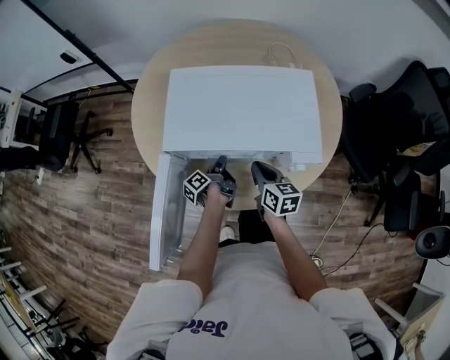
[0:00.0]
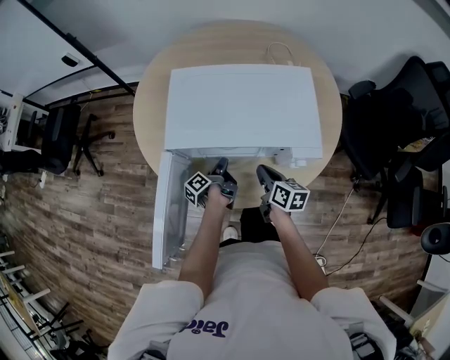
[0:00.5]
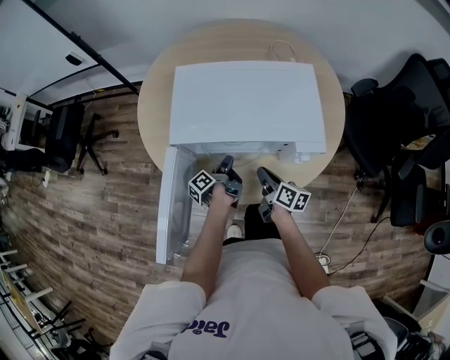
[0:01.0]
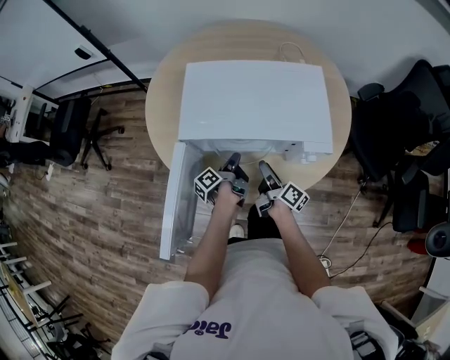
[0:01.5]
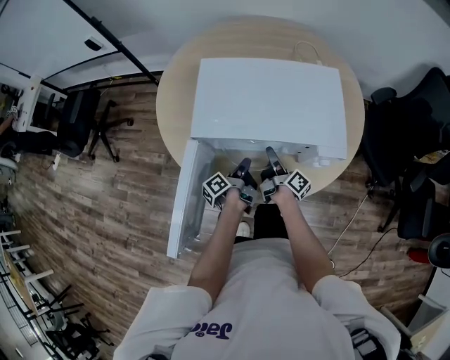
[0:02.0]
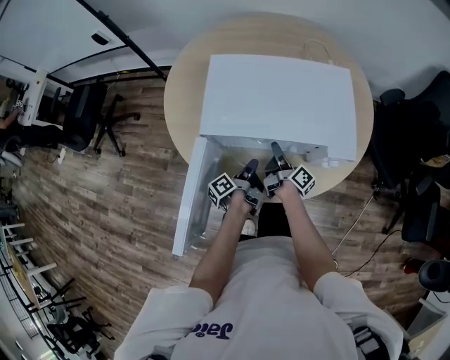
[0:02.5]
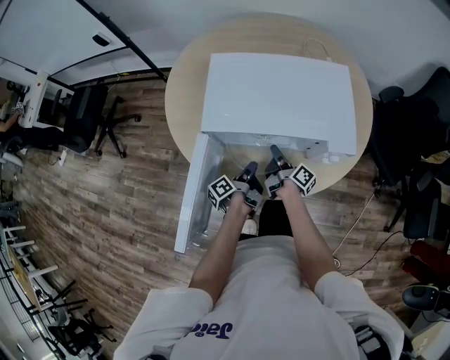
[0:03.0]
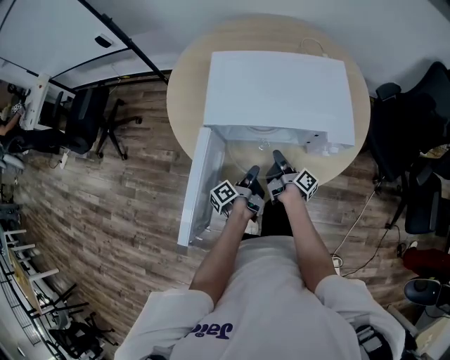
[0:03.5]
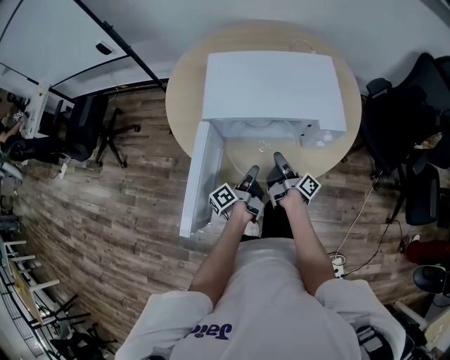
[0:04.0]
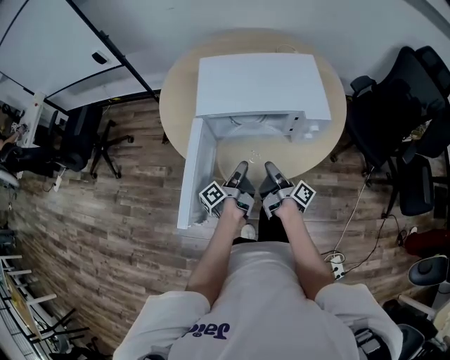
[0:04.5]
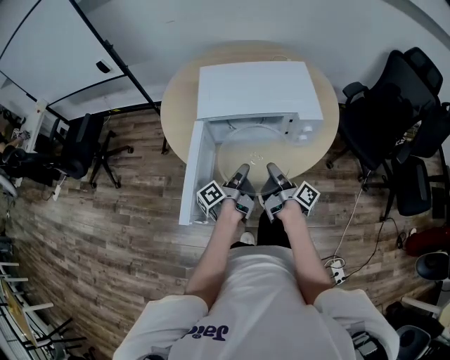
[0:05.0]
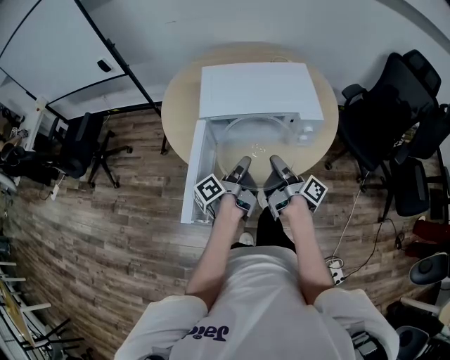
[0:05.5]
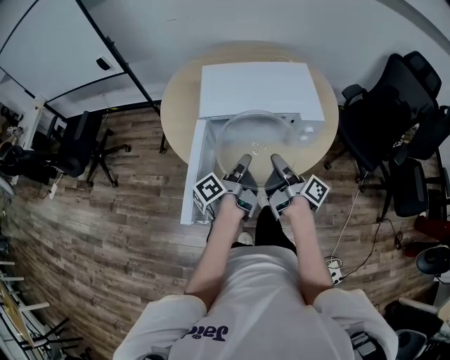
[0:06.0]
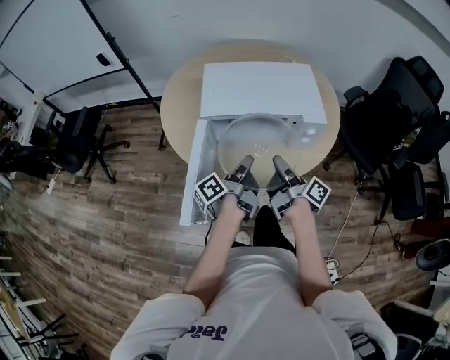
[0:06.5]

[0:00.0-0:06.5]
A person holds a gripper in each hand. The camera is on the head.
0:00.0 to 0:02.0: The right gripper heads downward, covering approximately 5 cm, rolls clockwise, seen from behind, by some 50 degrees, and opens up.
0:02.0 to 0:04.5: The right gripper ends up some 15 cm from where it was, and closes.
0:04.5 to 0:06.5: The right gripper is displaced upward by roughly 10 cm.

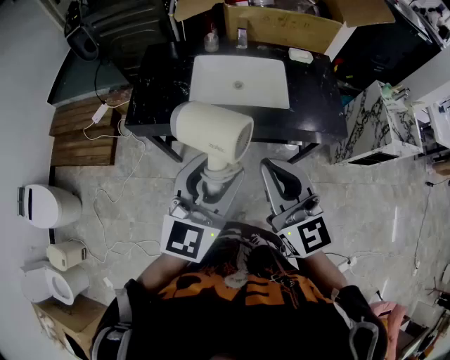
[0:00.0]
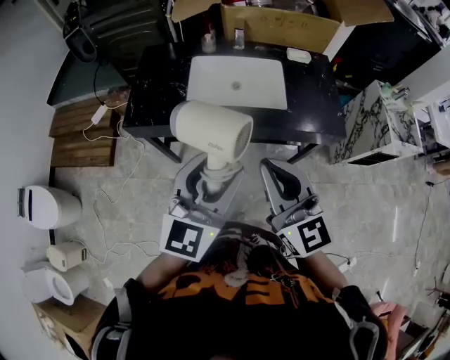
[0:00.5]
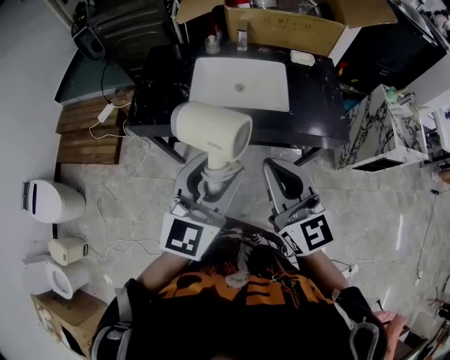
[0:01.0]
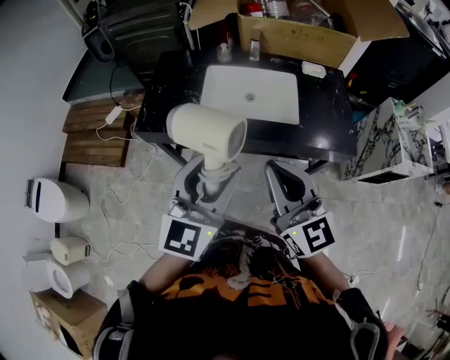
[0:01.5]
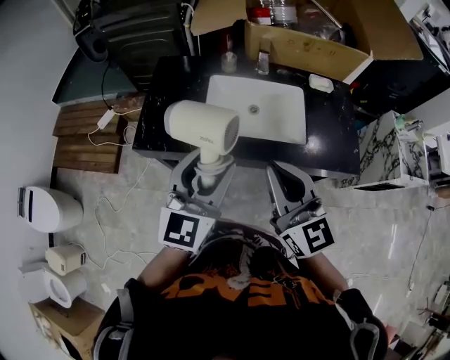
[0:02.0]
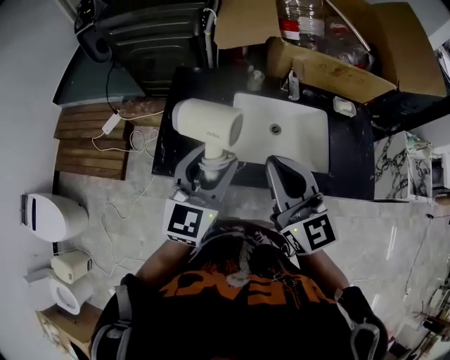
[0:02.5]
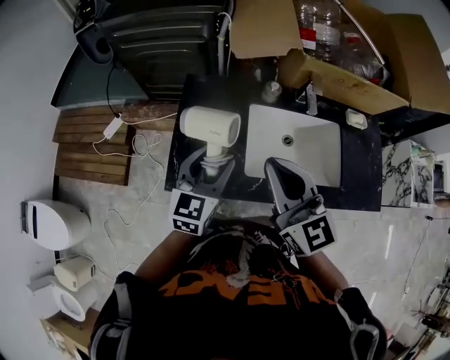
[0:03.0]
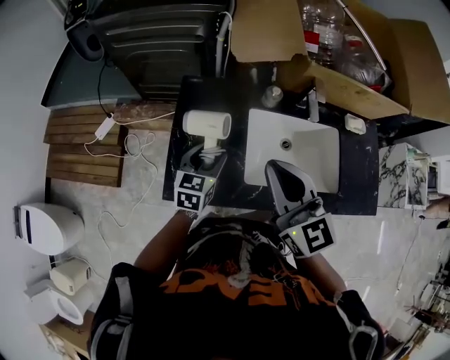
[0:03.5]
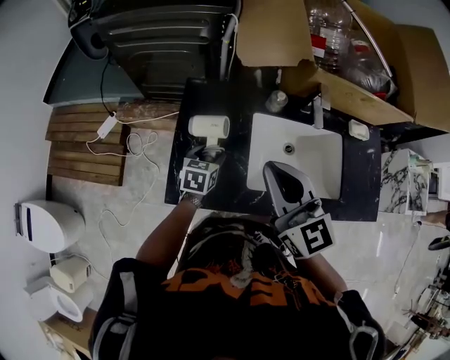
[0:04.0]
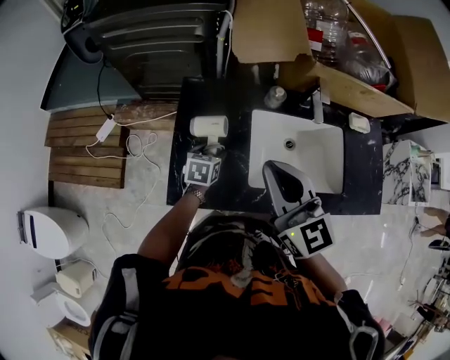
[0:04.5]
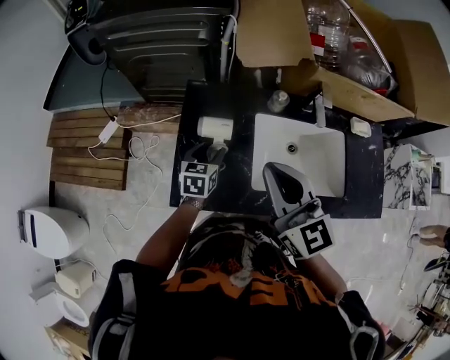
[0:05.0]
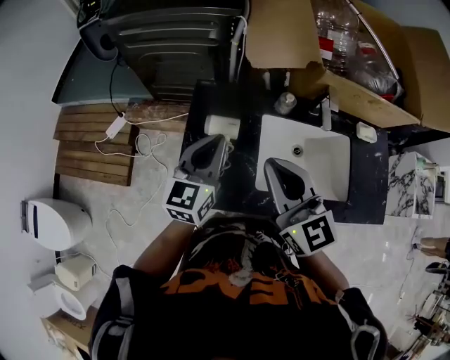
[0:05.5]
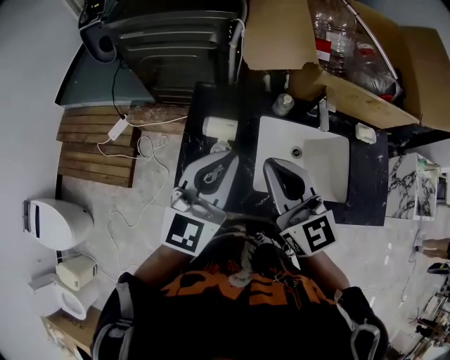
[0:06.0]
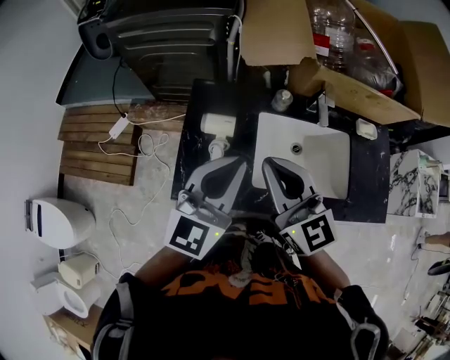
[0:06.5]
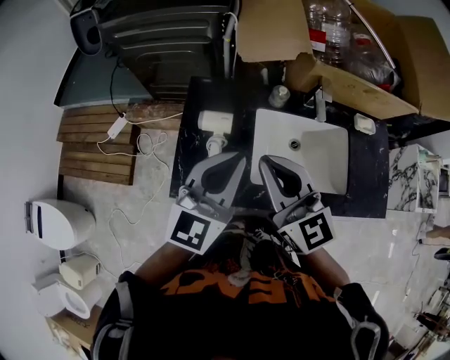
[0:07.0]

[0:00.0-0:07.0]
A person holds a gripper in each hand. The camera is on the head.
0:00.0 to 0:02.0: Both grippers move forward, some 15 cm.
0:02.0 to 0:03.5: The right gripper moves forward and to the left, about 30 cm; the left gripper shifts about 40 cm forward, downward and to the left, and changes its angle by about 30 degrees.
0:03.5 to 0:05.0: The left gripper is displaced downward by about 5 cm.
0:05.0 to 0:07.0: The left gripper shifts some 25 cm upward, points its fingers roughly 40 degrees further upward, and closes up.

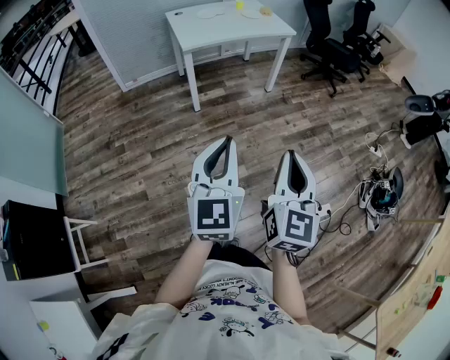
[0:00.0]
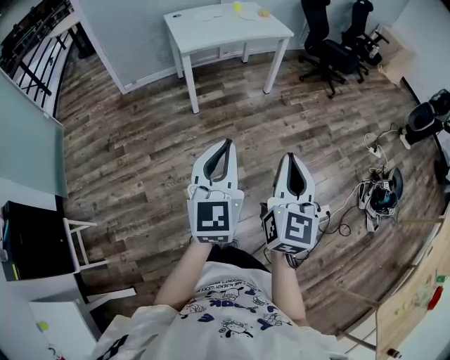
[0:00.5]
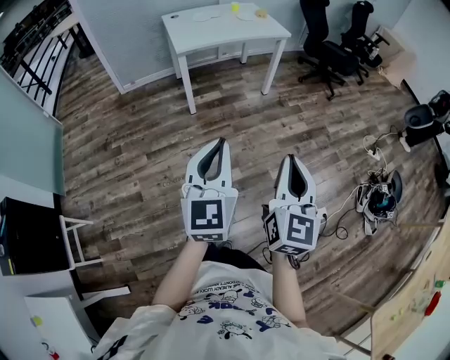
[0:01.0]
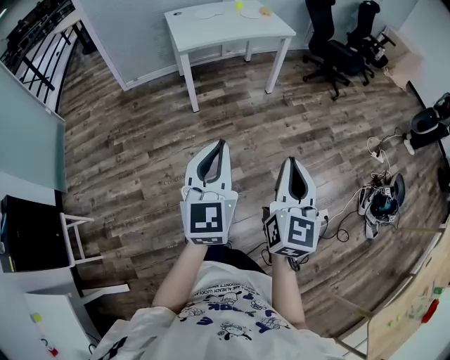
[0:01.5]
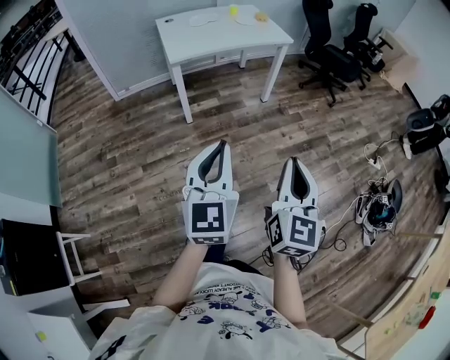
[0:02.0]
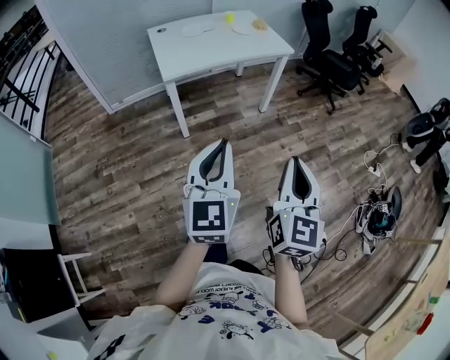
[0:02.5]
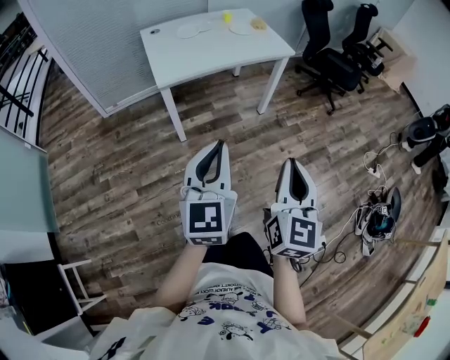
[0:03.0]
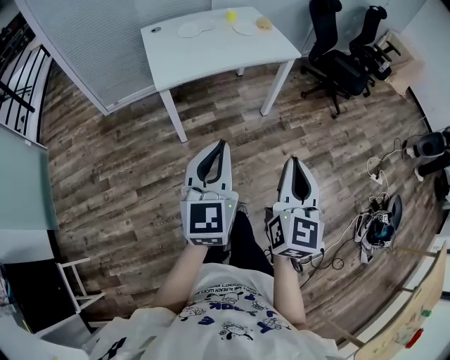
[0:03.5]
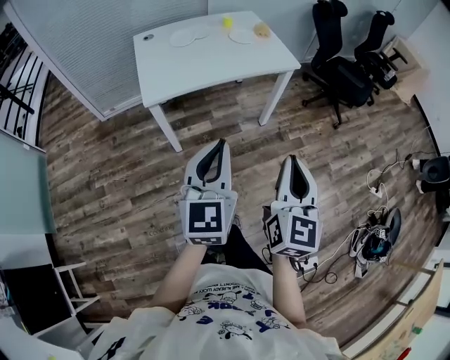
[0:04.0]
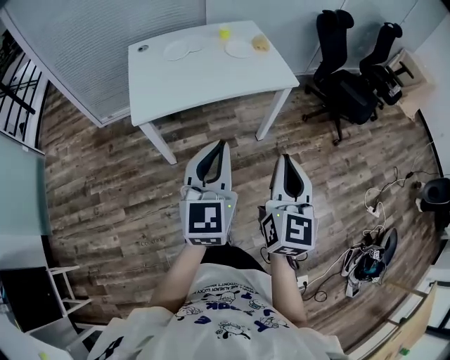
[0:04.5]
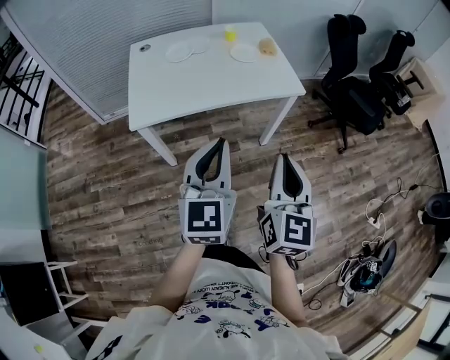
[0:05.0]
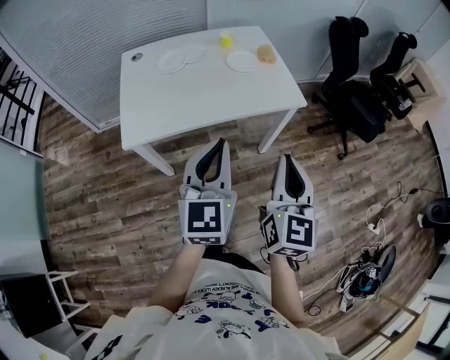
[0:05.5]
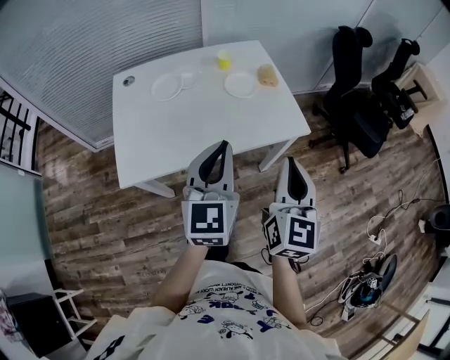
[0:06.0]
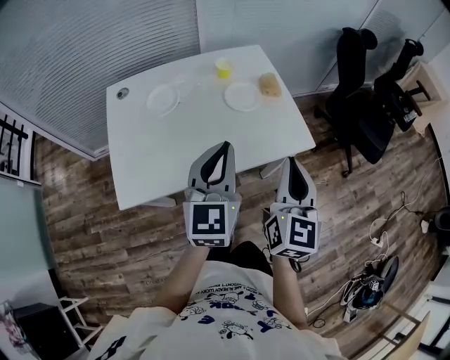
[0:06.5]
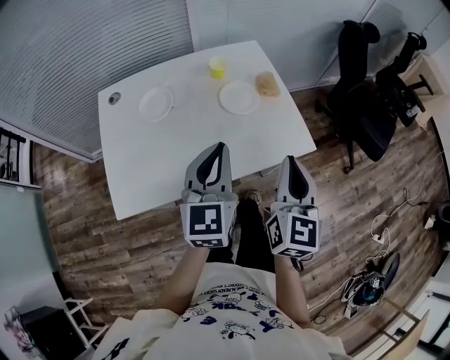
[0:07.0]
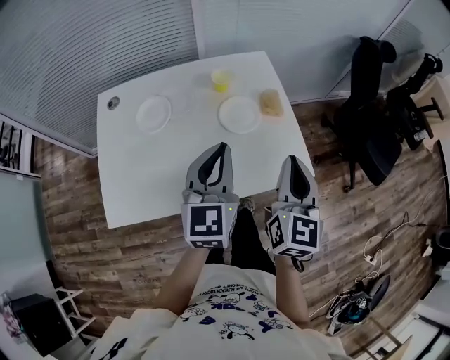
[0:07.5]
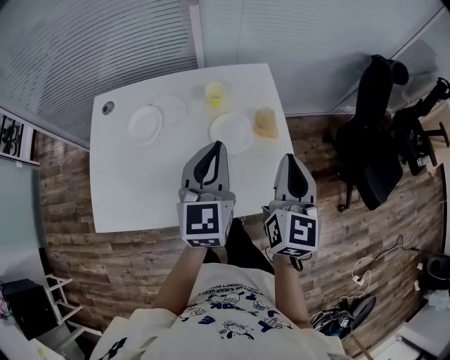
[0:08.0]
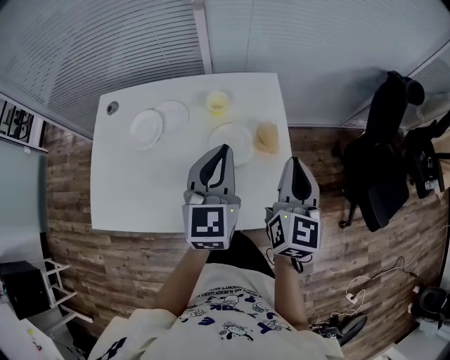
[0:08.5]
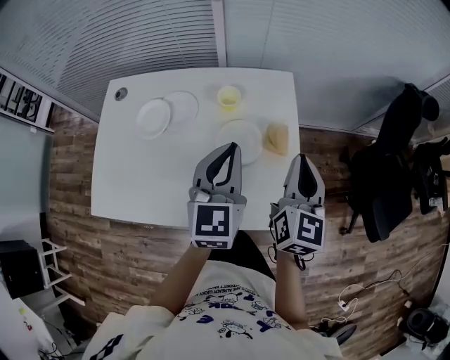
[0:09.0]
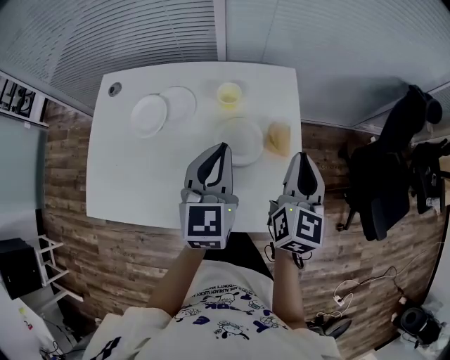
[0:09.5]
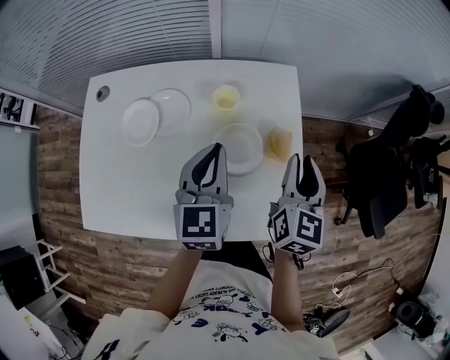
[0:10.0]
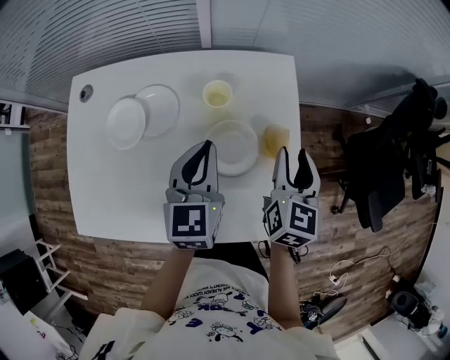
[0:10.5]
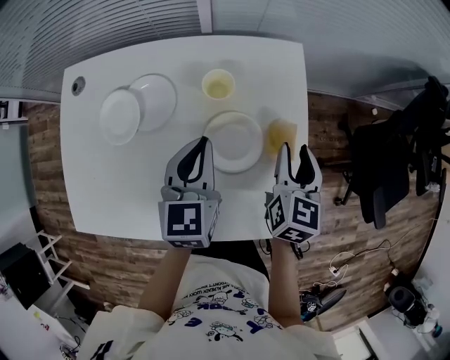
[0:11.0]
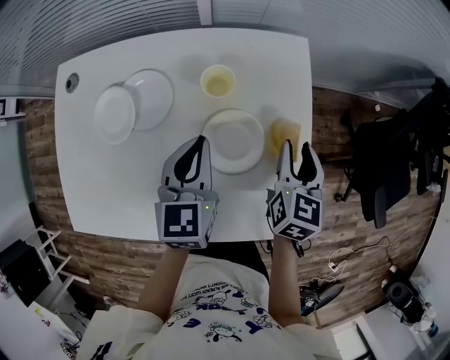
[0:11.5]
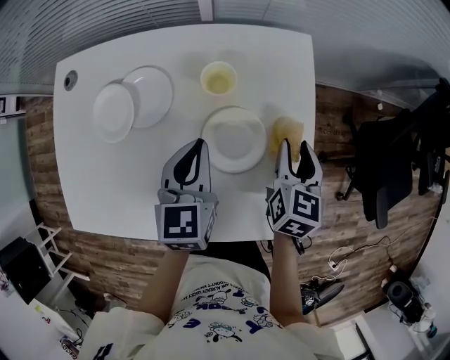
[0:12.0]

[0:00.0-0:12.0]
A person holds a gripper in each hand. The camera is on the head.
0:00.0 to 0:02.0: The right gripper goes approximately 10 cm forward and to the right. The left gripper travels forward by some 10 cm.
0:02.0 to 0:04.0: The two grippers go approximately 30 cm forward.
0:04.0 to 0:06.0: Both grippers travel together forward, some 35 cm.
0:06.0 to 0:08.0: Both grippers move forward, approximately 25 cm.
0:08.0 to 0:10.0: Both grippers travel together forward and downward, about 15 cm.
0:10.0 to 0:12.0: The grippers both shift downward by approximately 10 cm.

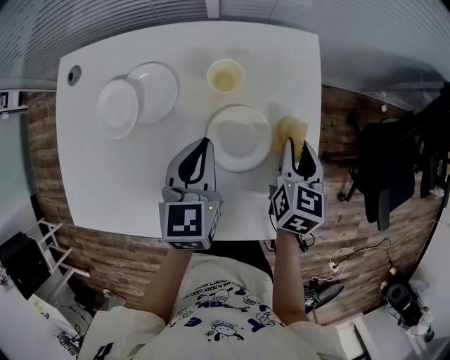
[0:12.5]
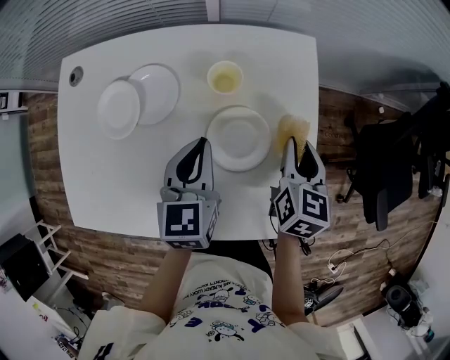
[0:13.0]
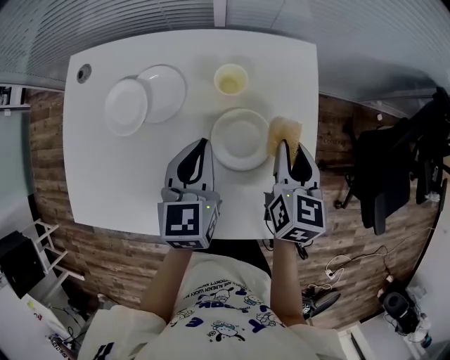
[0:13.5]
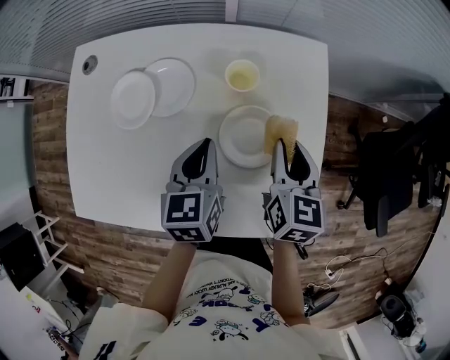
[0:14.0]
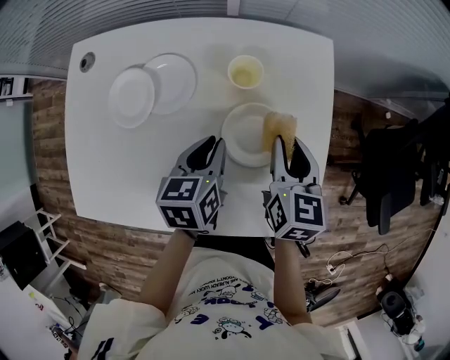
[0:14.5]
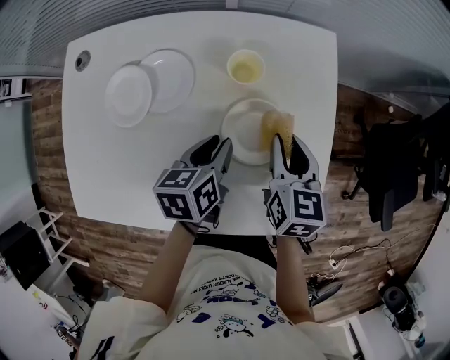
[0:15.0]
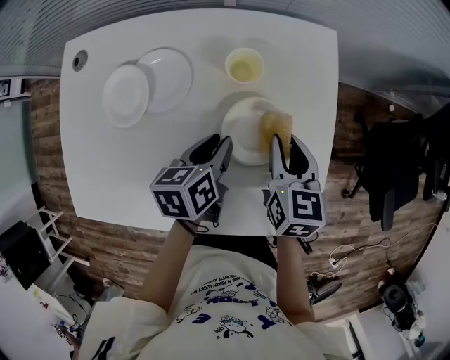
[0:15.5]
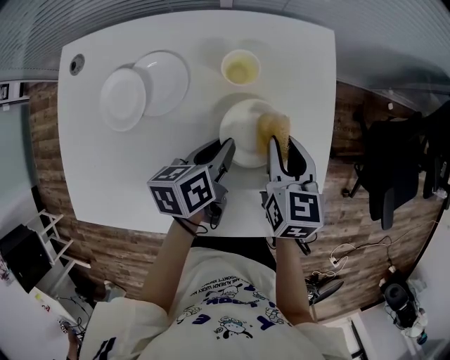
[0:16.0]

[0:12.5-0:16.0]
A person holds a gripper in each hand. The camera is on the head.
0:12.5 to 0:14.5: The right gripper travels to the left by approximately 5 cm. The left gripper shifts by roughly 5 cm, and changes its angle by approximately 20 degrees.
0:14.5 to 0:16.0: The left gripper turns by some 20 degrees.
